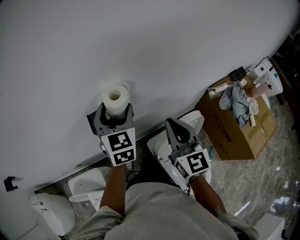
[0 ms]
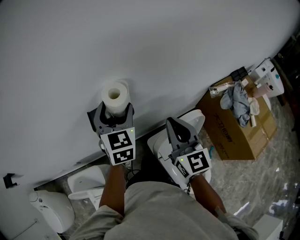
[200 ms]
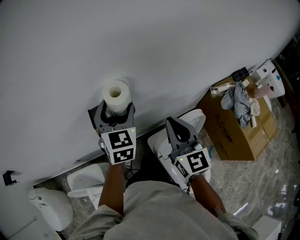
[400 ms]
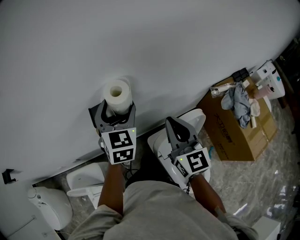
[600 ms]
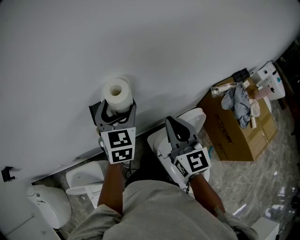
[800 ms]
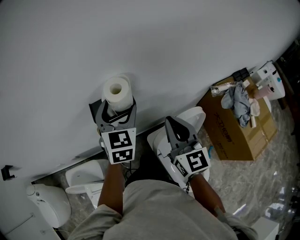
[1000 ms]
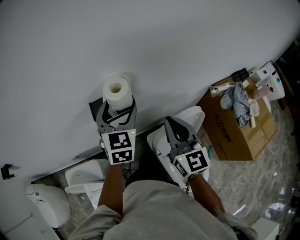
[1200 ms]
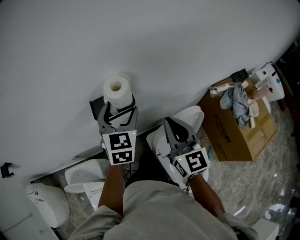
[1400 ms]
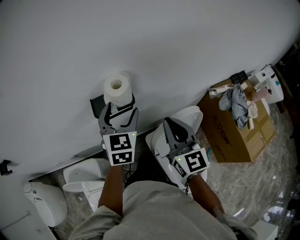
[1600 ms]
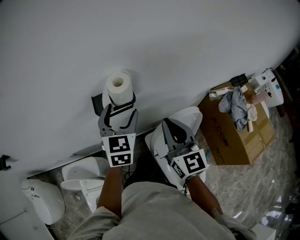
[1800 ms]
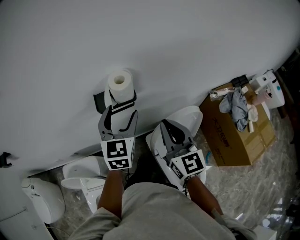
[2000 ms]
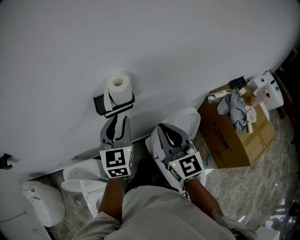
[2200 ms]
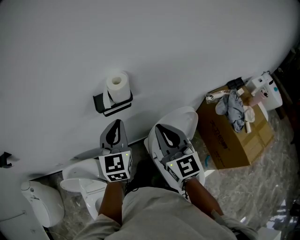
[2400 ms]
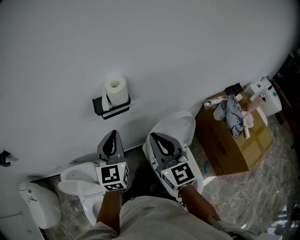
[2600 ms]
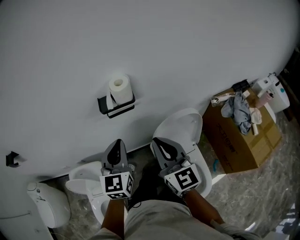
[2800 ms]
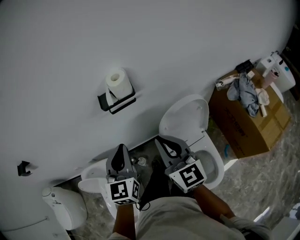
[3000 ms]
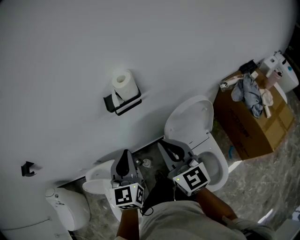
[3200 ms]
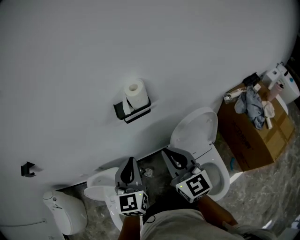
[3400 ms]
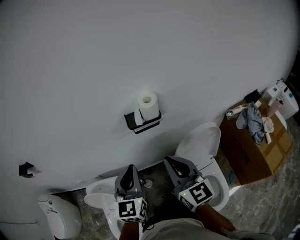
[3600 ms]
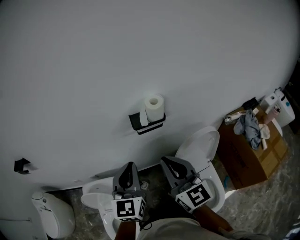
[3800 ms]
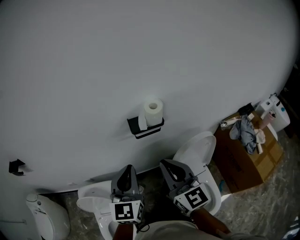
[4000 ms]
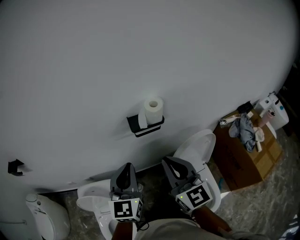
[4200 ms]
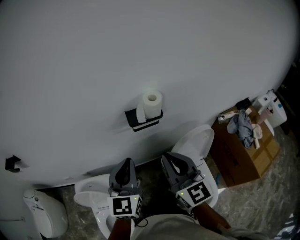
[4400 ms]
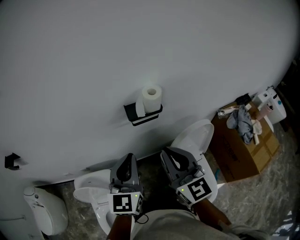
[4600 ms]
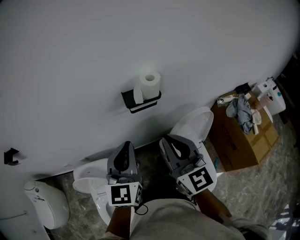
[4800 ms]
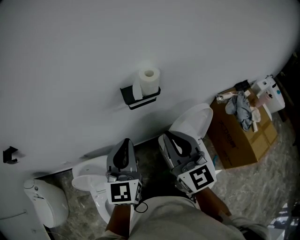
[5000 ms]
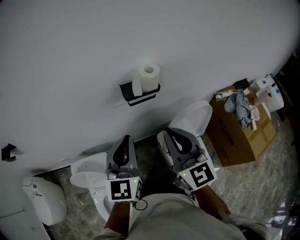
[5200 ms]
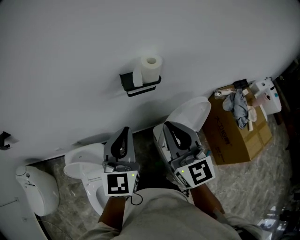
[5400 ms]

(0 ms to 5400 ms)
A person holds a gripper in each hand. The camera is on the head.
0 ms - 1400 ms: The grippers make only small movements.
1400 ms - 2800 ms: The left gripper moves backward, roughly 20 cm, and closes its fingers; the right gripper travels backward by roughly 10 cm.
2800 ms - 4000 ms: Both grippers move to the left, about 10 cm.
4000 ms - 5400 ms: The grippers make only small movements.

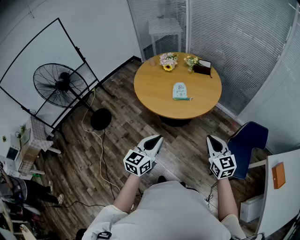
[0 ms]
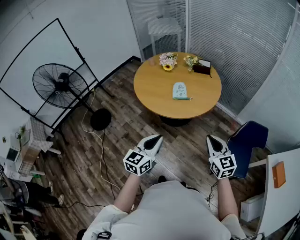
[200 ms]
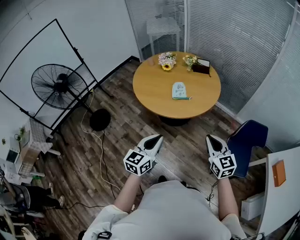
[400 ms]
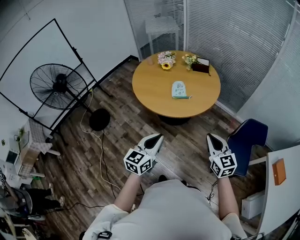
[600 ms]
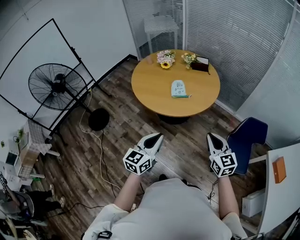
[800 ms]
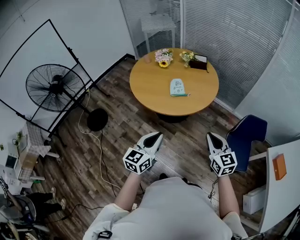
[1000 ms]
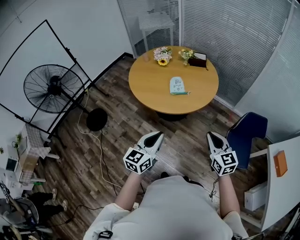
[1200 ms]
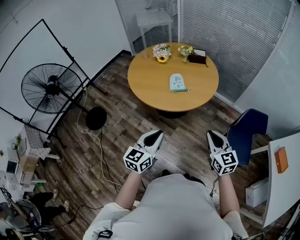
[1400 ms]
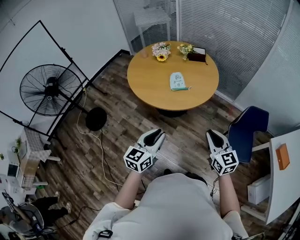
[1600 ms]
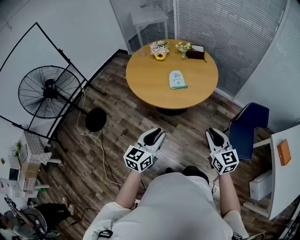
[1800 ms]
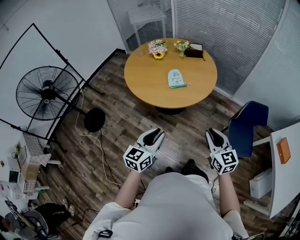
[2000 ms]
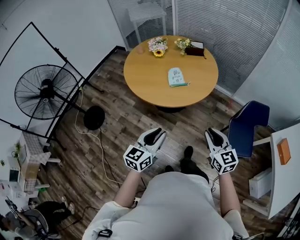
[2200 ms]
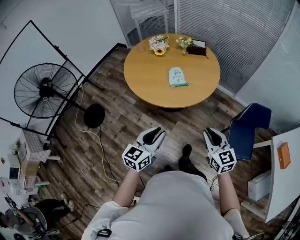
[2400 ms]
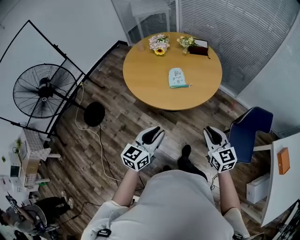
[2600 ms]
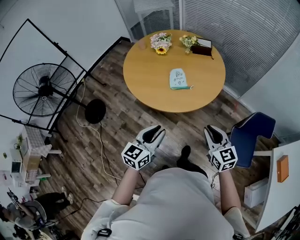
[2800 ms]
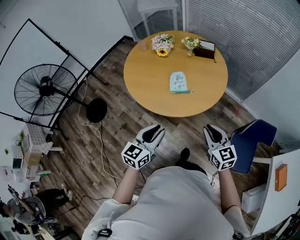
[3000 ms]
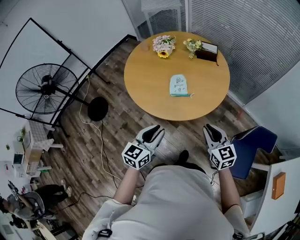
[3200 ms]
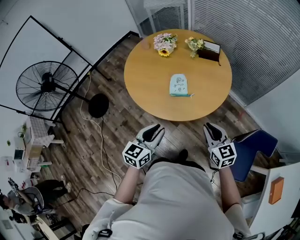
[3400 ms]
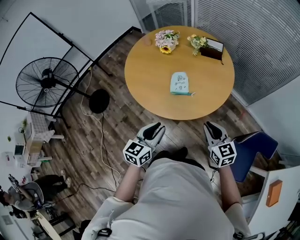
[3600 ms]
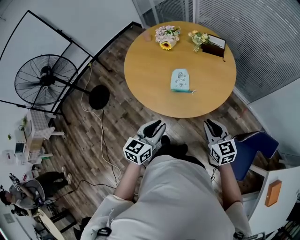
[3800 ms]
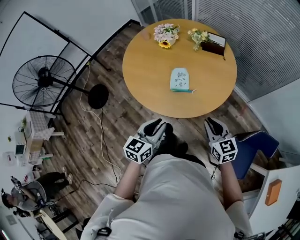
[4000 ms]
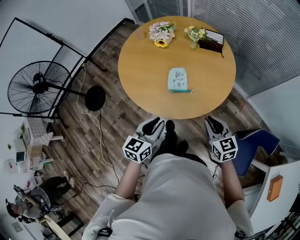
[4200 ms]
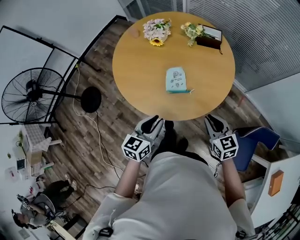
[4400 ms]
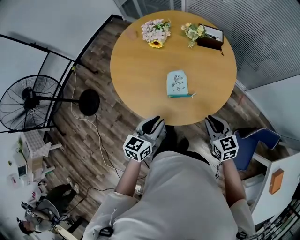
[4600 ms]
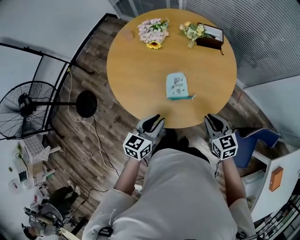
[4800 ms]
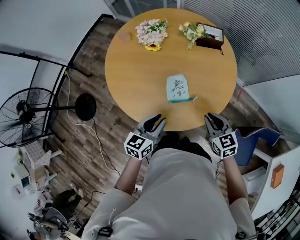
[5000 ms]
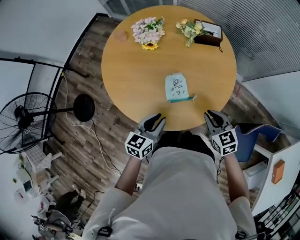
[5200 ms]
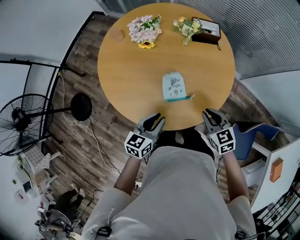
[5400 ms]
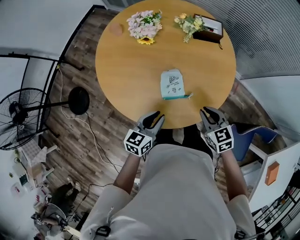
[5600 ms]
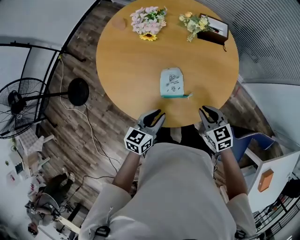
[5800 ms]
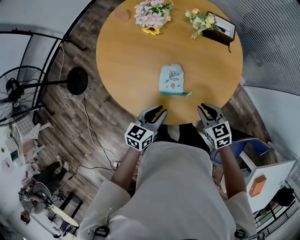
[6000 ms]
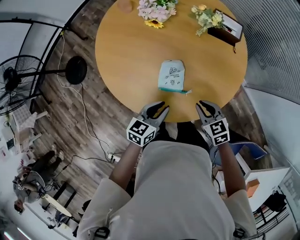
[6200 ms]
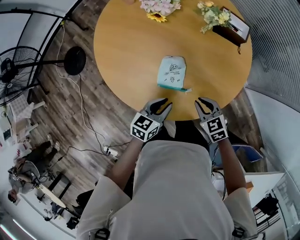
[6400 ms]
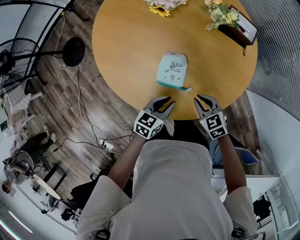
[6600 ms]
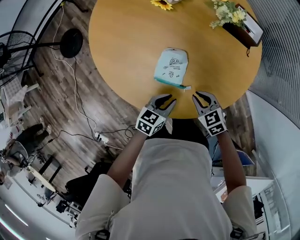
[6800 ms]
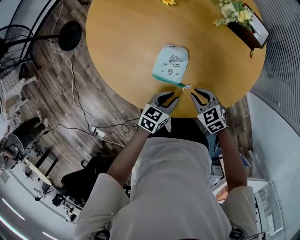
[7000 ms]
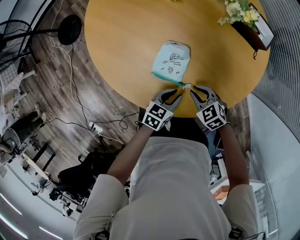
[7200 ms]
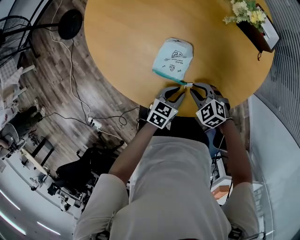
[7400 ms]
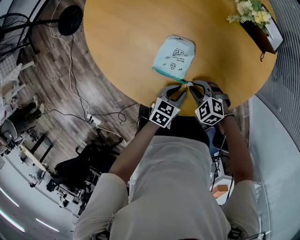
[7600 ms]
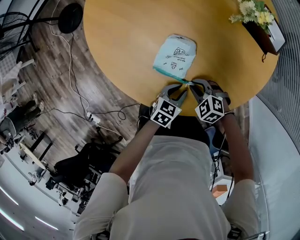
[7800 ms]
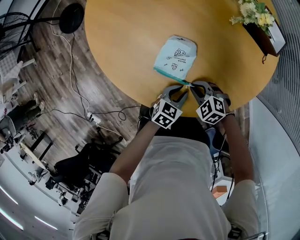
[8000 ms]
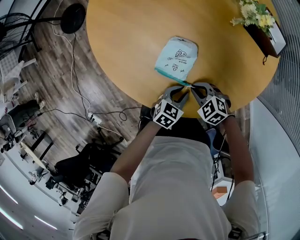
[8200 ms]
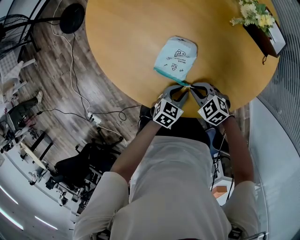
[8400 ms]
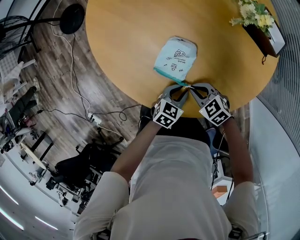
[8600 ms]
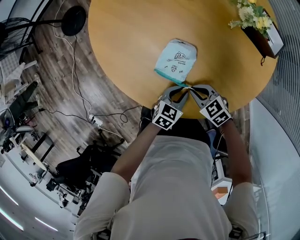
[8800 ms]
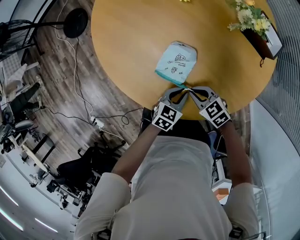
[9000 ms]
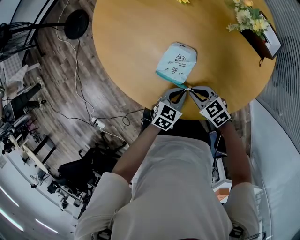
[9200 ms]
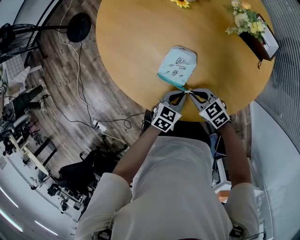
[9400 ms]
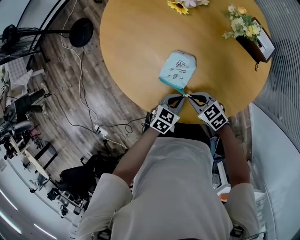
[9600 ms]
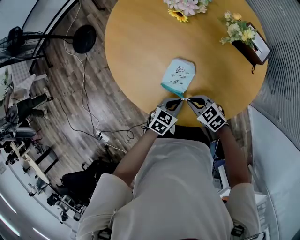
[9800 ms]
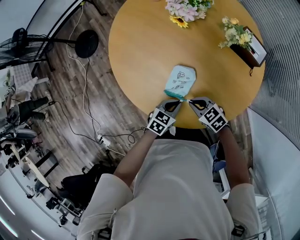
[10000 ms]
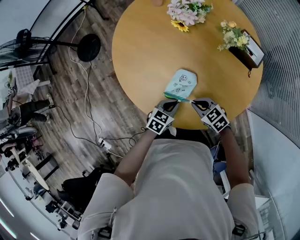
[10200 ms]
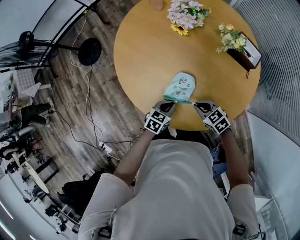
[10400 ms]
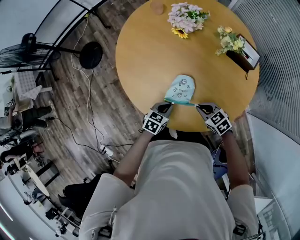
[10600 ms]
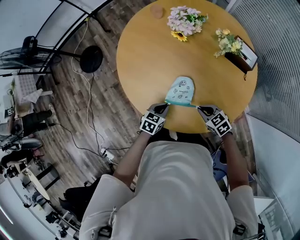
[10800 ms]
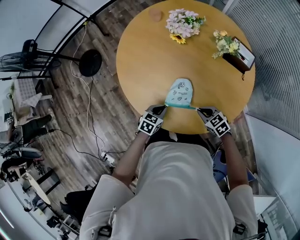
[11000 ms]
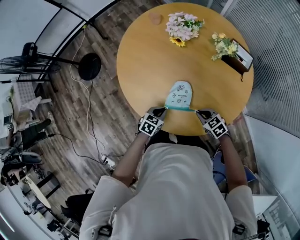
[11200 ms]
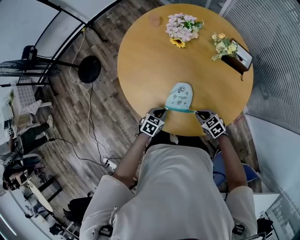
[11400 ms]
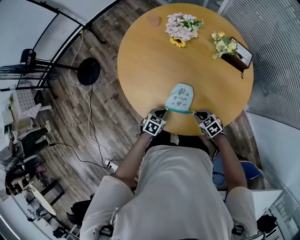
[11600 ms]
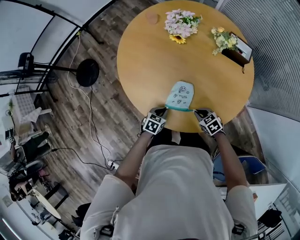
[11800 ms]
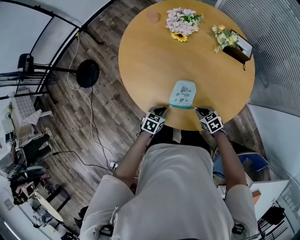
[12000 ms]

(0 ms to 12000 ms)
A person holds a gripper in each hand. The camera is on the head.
0 ms - 1600 ms: Both grippers travel together to the left, roughly 5 cm.
1600 ms - 3000 ms: The grippers both shift forward by approximately 20 cm.
3000 ms - 4400 ms: The grippers both shift forward and downward by roughly 20 cm.
4400 ms - 6000 ms: The grippers both shift forward and downward by about 20 cm.
6000 ms - 7600 ms: The grippers both shift downward by roughly 20 cm. The left gripper swivels some 20 degrees. Meanwhile the right gripper twists some 50 degrees counterclockwise, seen from behind.
7600 ms - 9000 ms: The right gripper changes its angle by some 30 degrees.
9000 ms - 10400 ms: The left gripper ends up approximately 10 cm from where it was, while the right gripper heads upward, covering roughly 10 cm.
10400 ms - 12000 ms: The right gripper travels to the left by roughly 5 cm, and turns by some 20 degrees. The left gripper goes some 15 cm to the left.

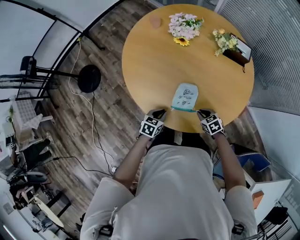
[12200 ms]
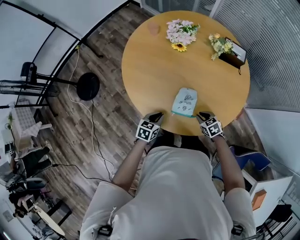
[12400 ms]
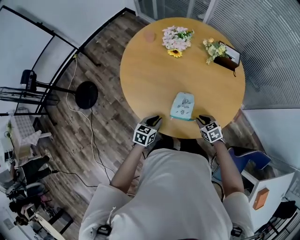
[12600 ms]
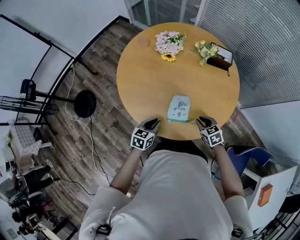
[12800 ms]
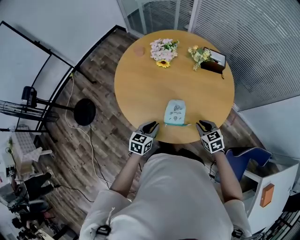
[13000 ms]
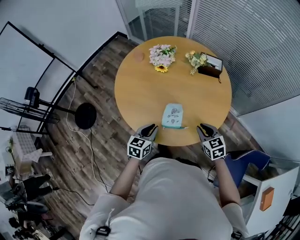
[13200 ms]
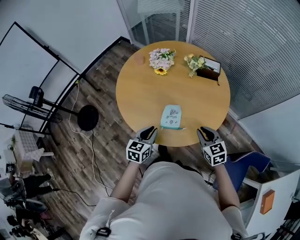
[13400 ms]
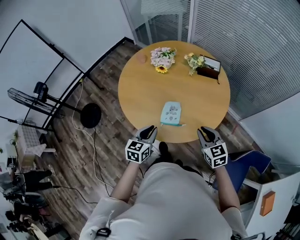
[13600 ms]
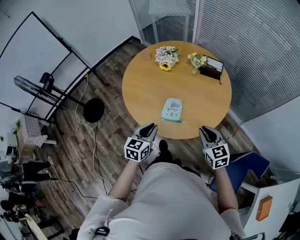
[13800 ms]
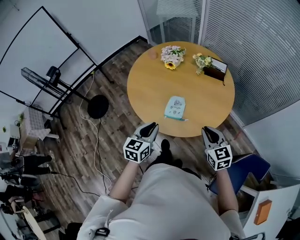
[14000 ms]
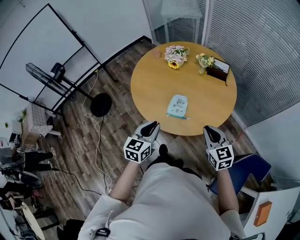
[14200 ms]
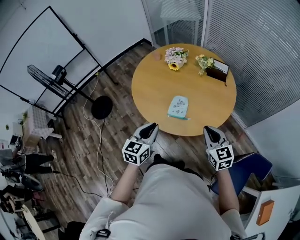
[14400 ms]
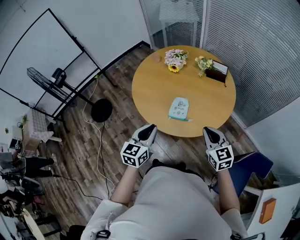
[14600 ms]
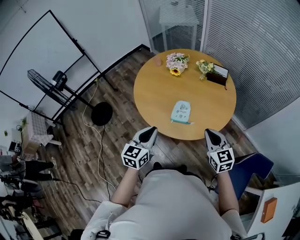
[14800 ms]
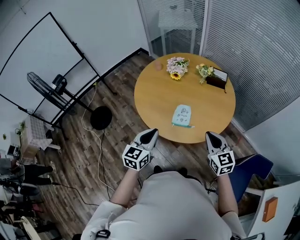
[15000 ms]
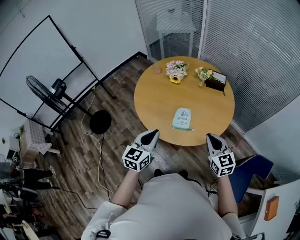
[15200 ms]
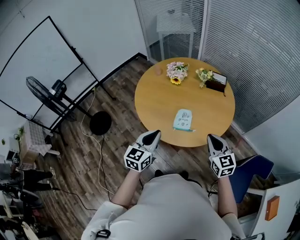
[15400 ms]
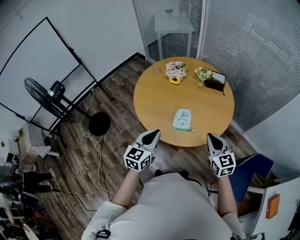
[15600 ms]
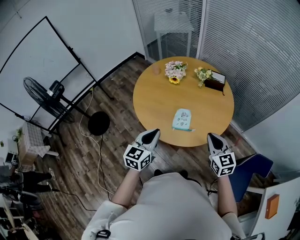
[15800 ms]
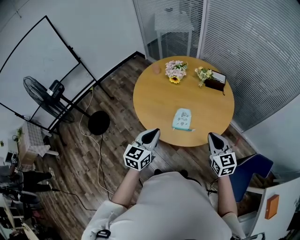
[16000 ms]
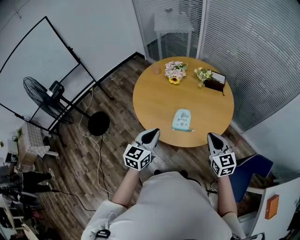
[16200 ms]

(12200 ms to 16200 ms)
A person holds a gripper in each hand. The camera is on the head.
12200 ms - 13600 ms: Both grippers move upward, some 25 cm. The left gripper turns by some 20 degrees. The right gripper tips its fingers upward by approximately 30 degrees.
13600 ms - 14800 ms: The grippers both shift backward and upward by roughly 15 cm.
14800 ms - 16200 ms: The left gripper ends up roughly 5 cm from where it was.

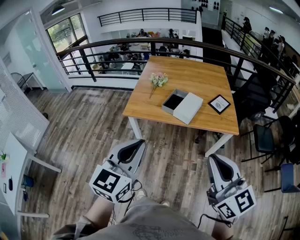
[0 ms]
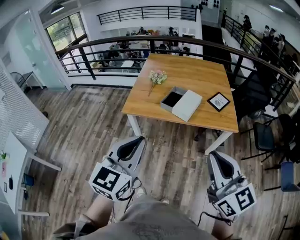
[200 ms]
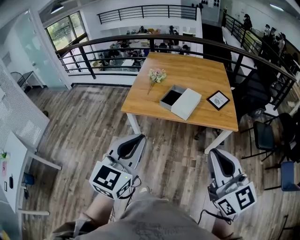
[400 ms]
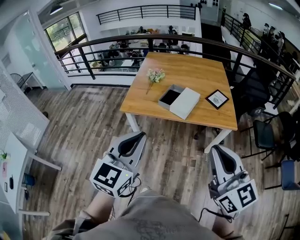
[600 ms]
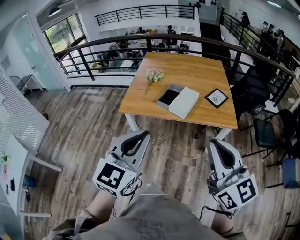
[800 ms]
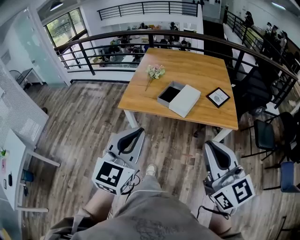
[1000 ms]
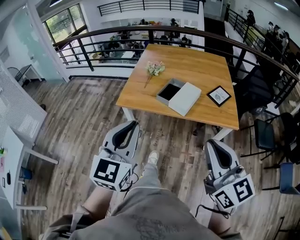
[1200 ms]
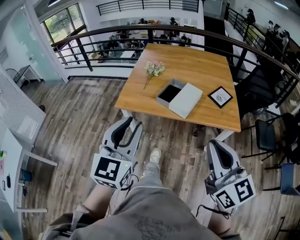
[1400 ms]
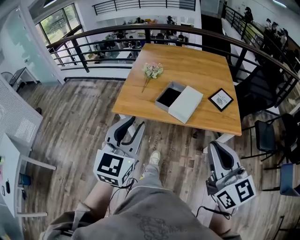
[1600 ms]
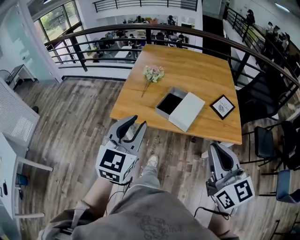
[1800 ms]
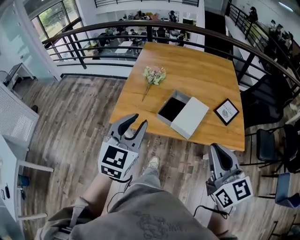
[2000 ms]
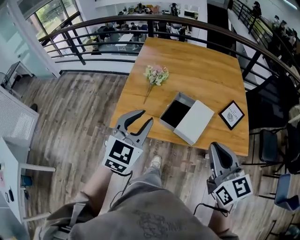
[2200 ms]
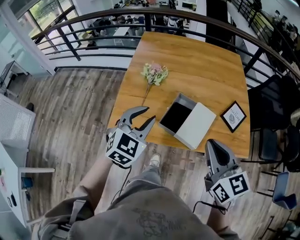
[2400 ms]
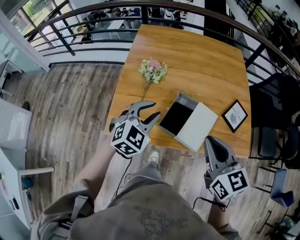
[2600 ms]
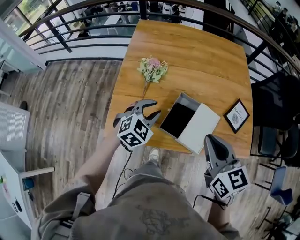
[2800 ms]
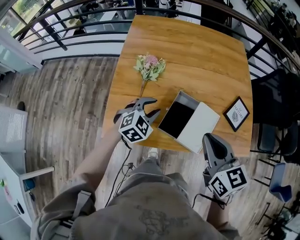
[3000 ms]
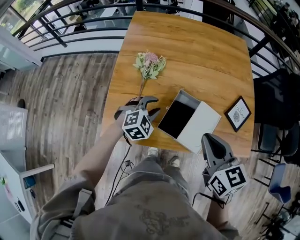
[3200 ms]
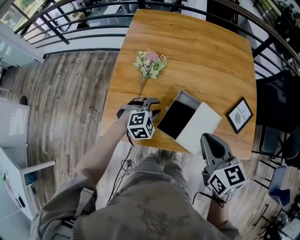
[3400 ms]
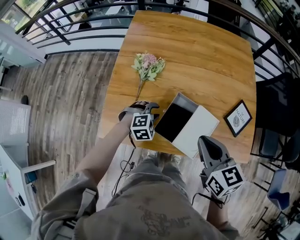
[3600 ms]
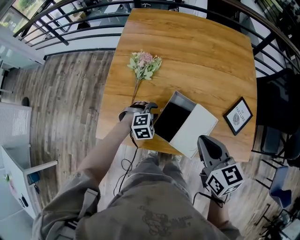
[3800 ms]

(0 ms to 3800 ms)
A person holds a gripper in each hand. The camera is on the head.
0 ms - 1200 ms: The two grippers go about 5 cm forward.
1200 ms - 2600 ms: The right gripper is displaced forward by approximately 35 cm, and turns by roughly 20 degrees. Meanwhile the left gripper shifts approximately 50 cm forward and downward, rotates approximately 40 degrees, and opens up.
2600 ms - 3800 ms: The right gripper goes about 10 cm downward and forward, while the left gripper heads downward, covering roughly 25 cm, and tips its fingers downward by some 30 degrees.
